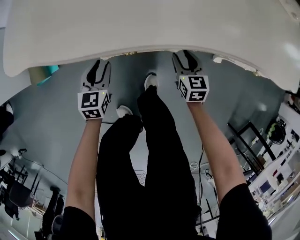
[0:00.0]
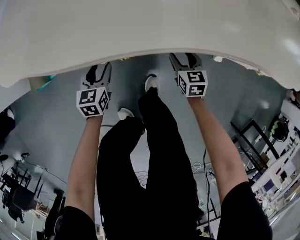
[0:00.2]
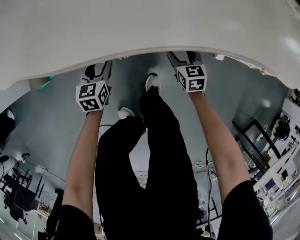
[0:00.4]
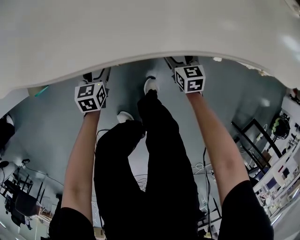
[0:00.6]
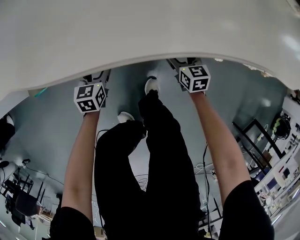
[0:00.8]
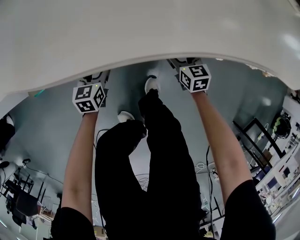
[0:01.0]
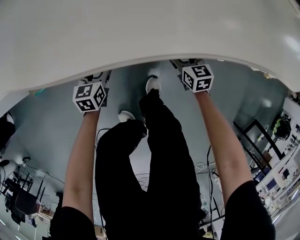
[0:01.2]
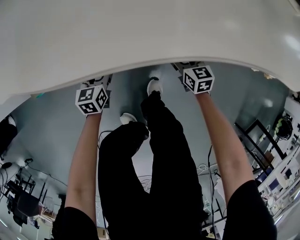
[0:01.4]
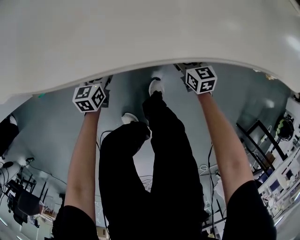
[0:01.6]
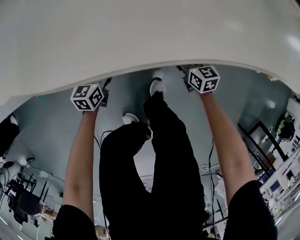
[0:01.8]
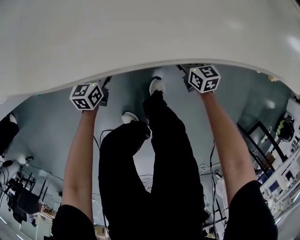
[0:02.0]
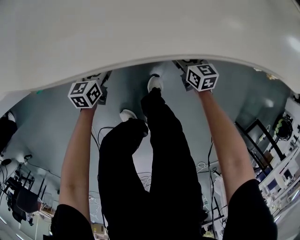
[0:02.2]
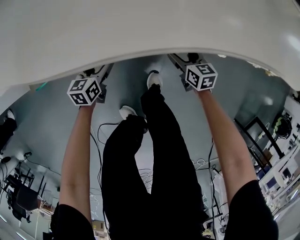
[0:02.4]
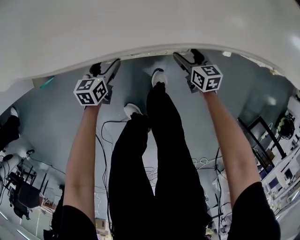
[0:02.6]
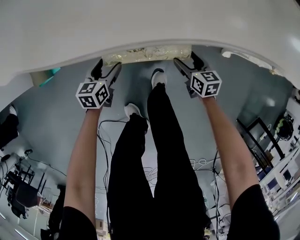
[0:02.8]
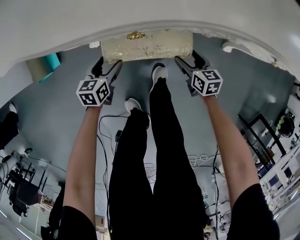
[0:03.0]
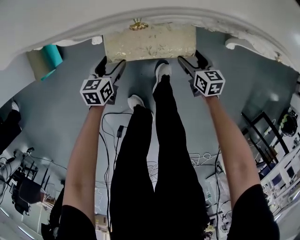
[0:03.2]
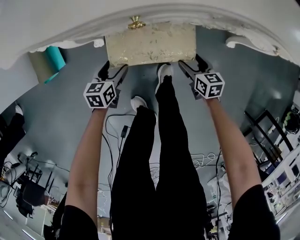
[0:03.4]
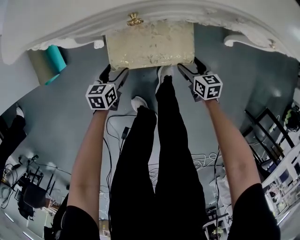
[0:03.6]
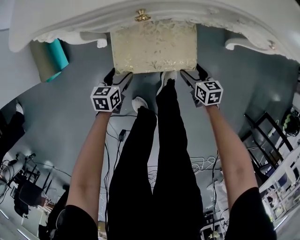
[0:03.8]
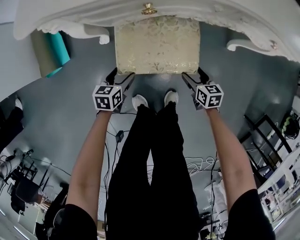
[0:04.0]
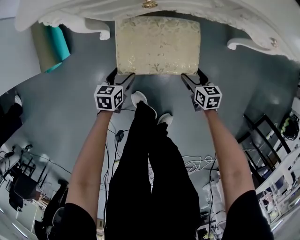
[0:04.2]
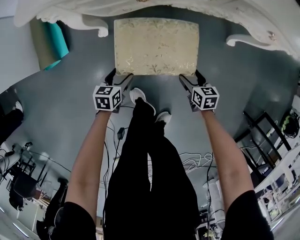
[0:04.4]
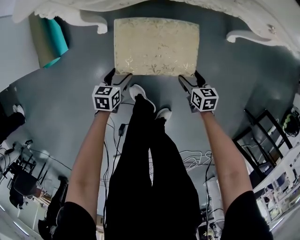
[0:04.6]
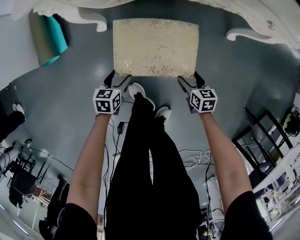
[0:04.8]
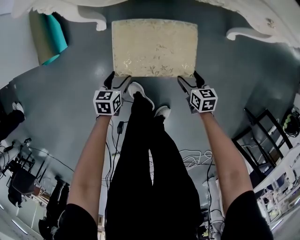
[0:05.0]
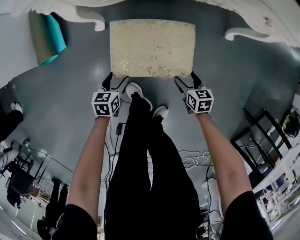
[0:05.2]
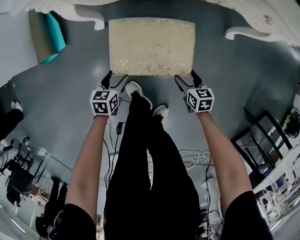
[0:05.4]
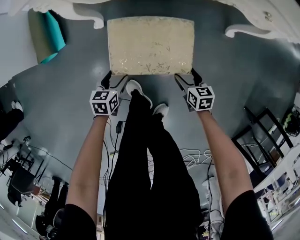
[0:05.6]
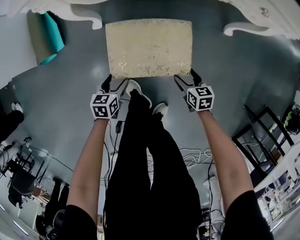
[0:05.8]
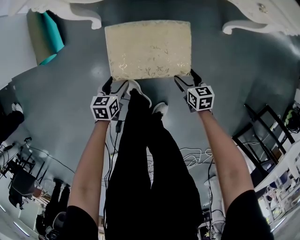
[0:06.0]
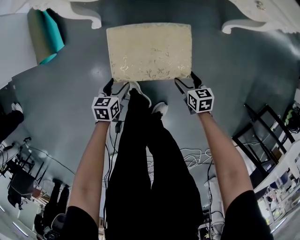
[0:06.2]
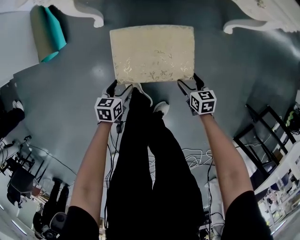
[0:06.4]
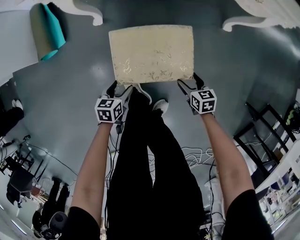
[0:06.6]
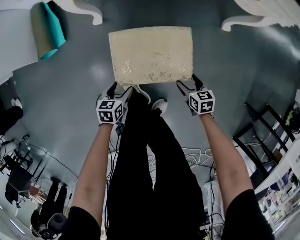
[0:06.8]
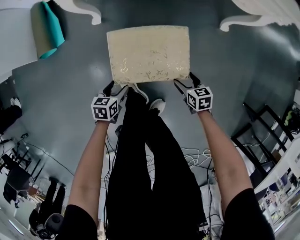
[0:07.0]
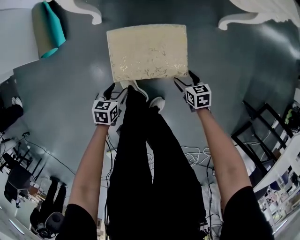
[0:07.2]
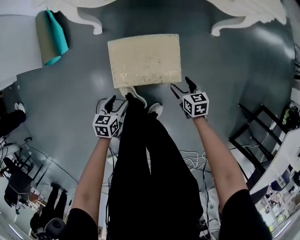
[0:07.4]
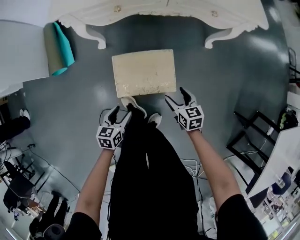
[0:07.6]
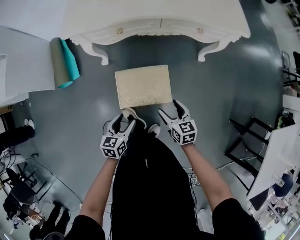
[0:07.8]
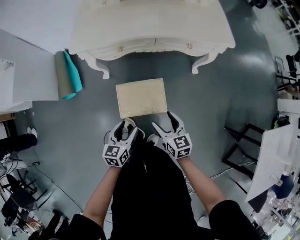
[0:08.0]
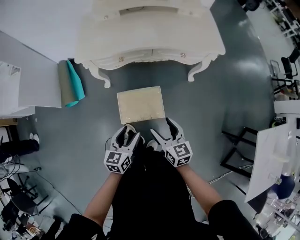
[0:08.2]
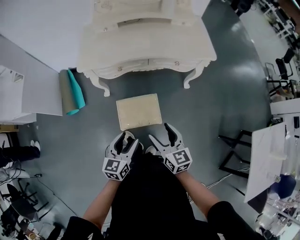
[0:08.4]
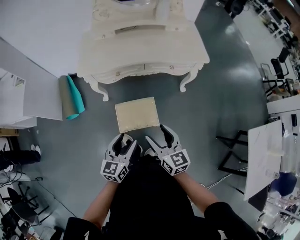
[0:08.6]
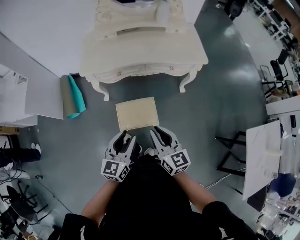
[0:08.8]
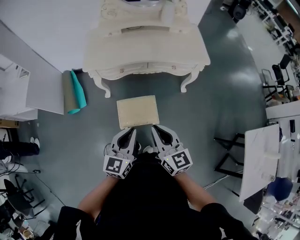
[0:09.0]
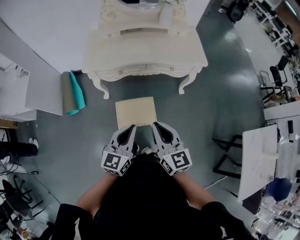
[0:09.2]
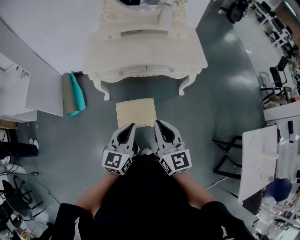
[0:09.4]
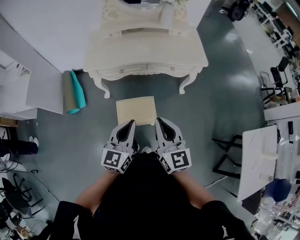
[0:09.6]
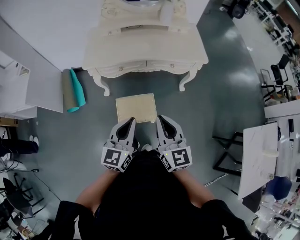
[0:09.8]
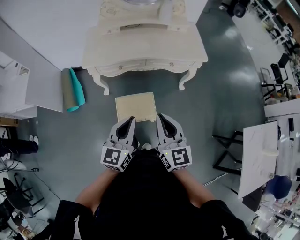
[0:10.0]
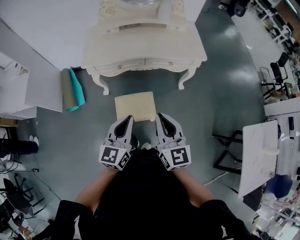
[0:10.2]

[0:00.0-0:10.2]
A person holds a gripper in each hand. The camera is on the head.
0:00.0 to 0:01.4: The two grippers go roughly 5 cm downward. The right gripper opens its fingers; the left gripper opens.
0:01.4 to 0:03.0: Both grippers travel together backward, roughly 10 cm.
0:03.0 to 0:04.4: The grippers both shift backward by about 15 cm.
0:04.4 to 0:05.8: The two grippers go about 10 cm backward.
0:05.8 to 0:07.2: Both grippers move backward, about 10 cm.
0:07.2 to 0:08.8: Both grippers travel together upward, some 60 cm. The right gripper tilts its fingers approximately 40 degrees upward, and closes; the left gripper points its fingers approximately 40 degrees further upward.
0:08.8 to 0:10.2: Both grippers move upward, some 5 cm. The left gripper closes.

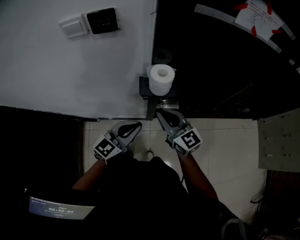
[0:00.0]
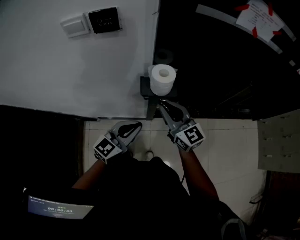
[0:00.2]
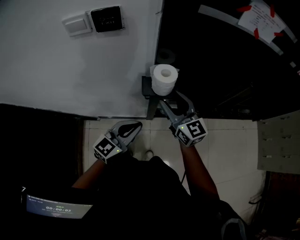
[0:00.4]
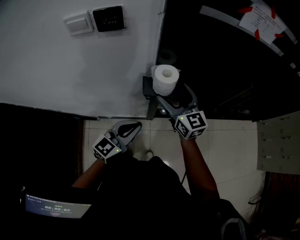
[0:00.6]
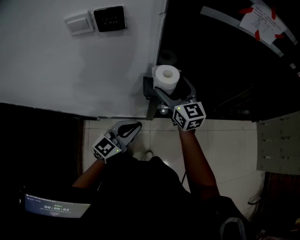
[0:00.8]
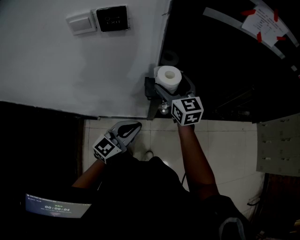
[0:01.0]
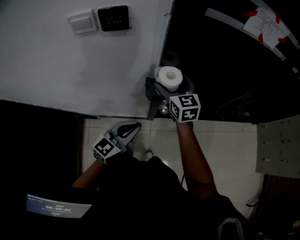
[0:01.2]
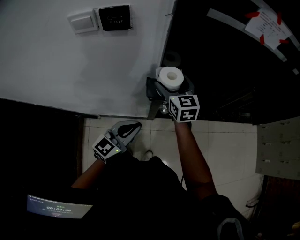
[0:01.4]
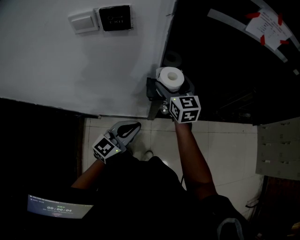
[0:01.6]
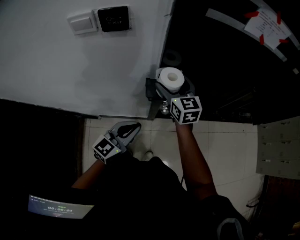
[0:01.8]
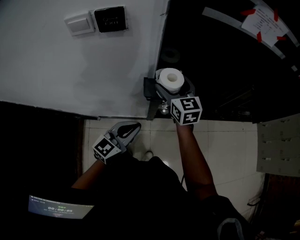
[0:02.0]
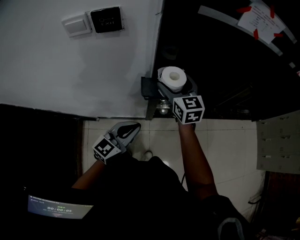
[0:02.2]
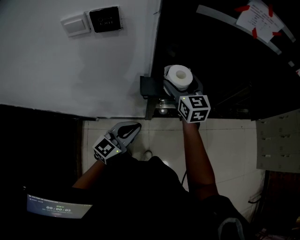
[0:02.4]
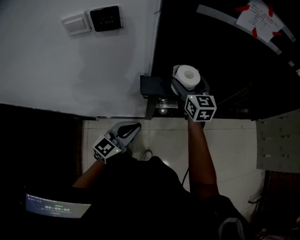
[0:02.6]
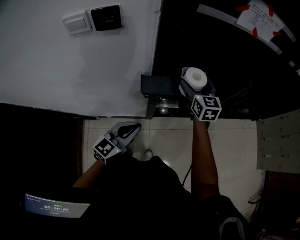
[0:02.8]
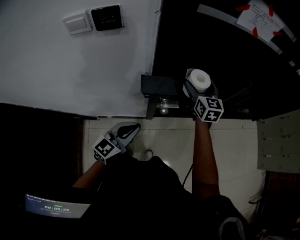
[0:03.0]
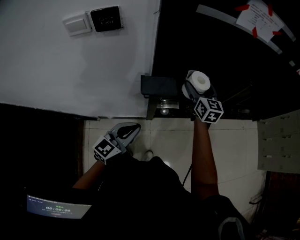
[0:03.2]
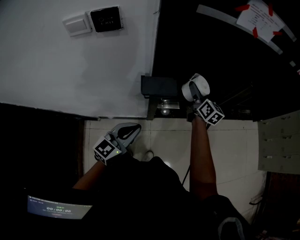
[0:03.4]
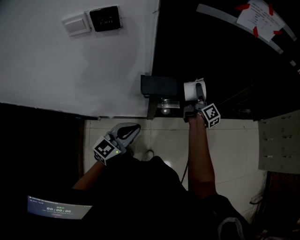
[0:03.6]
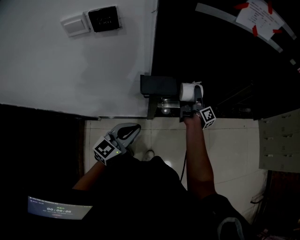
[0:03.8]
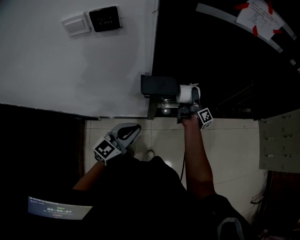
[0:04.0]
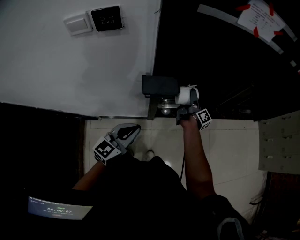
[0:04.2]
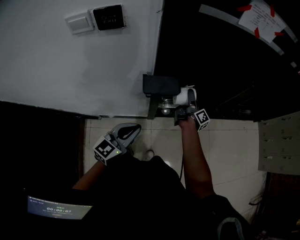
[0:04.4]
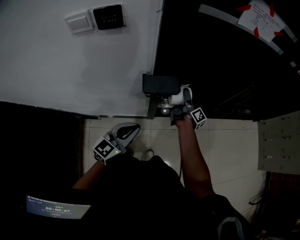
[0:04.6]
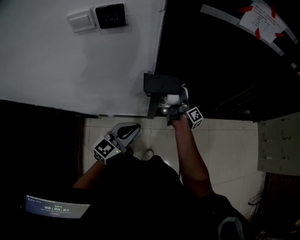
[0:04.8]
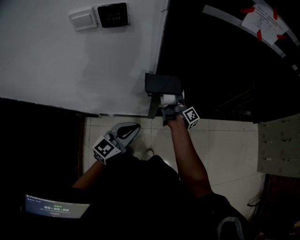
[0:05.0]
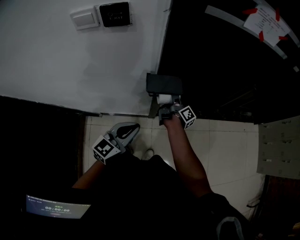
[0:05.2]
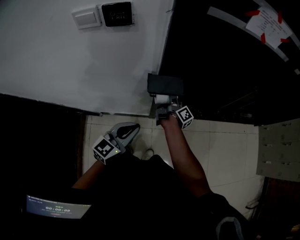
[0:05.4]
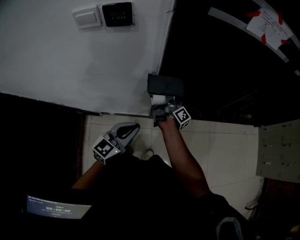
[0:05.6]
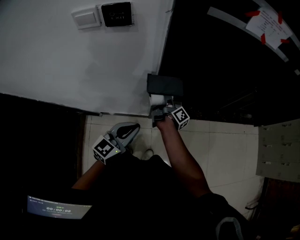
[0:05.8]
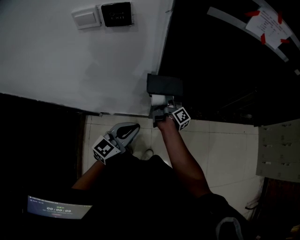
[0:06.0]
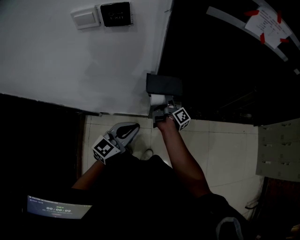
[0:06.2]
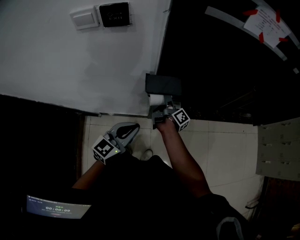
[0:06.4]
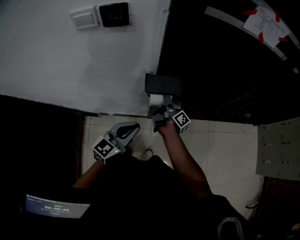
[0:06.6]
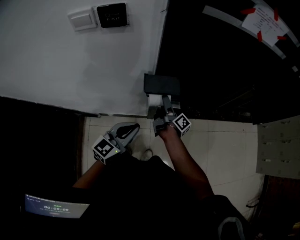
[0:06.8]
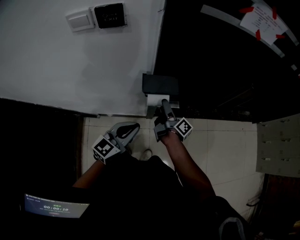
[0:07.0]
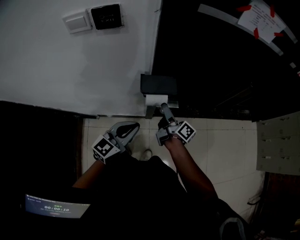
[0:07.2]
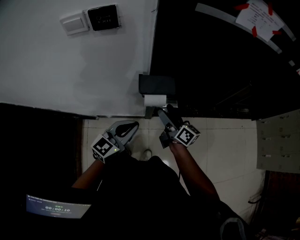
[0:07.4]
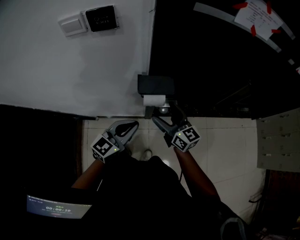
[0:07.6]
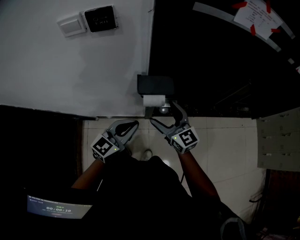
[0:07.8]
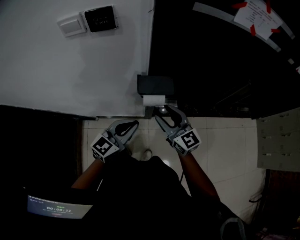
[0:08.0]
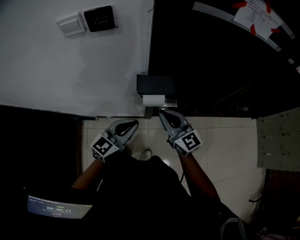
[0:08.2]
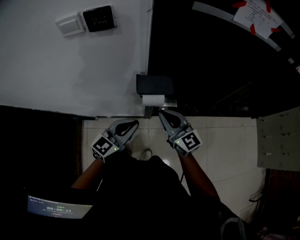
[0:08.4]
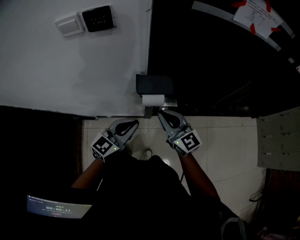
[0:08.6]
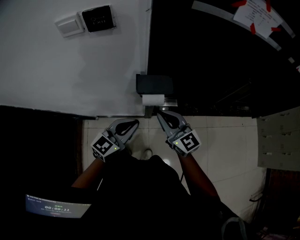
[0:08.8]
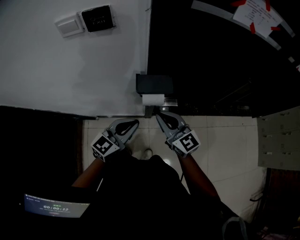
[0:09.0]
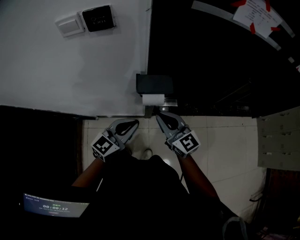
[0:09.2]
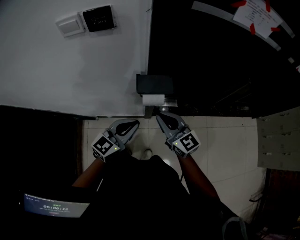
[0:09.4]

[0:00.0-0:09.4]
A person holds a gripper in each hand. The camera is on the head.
0:00.0 to 0:01.6: The right gripper shifts some 15 cm forward, rotates some 20 degrees, and opens.
0:01.6 to 0:03.2: The right gripper moves to the right, roughly 15 cm.
0:03.2 to 0:04.8: The right gripper moves downward, some 15 cm, and rolls clockwise, seen from behind, by about 80 degrees.
0:04.8 to 0:06.2: The right gripper moves to the left, roughly 10 cm.
0:06.2 to 0:07.8: The right gripper goes some 15 cm upward and backward, and rolls counterclockwise, seen from behind, by about 80 degrees.
0:07.8 to 0:09.4: The right gripper closes.

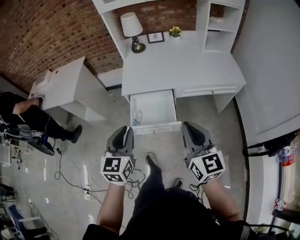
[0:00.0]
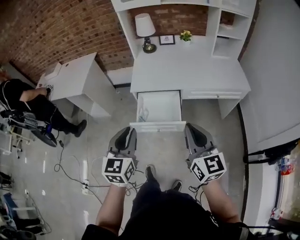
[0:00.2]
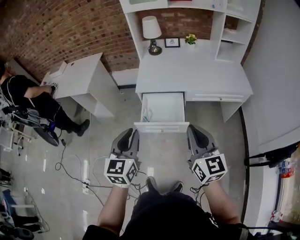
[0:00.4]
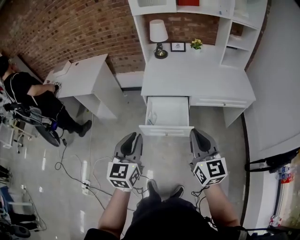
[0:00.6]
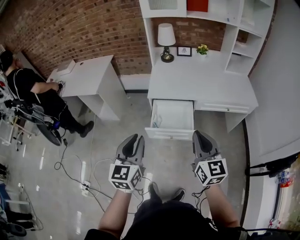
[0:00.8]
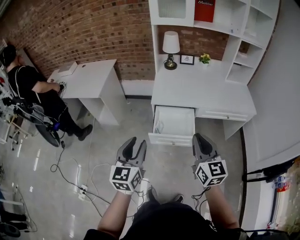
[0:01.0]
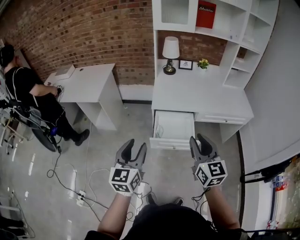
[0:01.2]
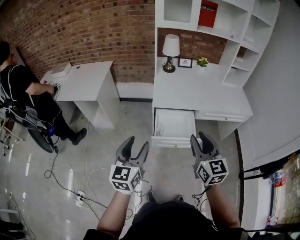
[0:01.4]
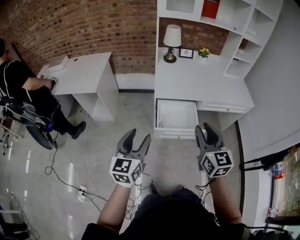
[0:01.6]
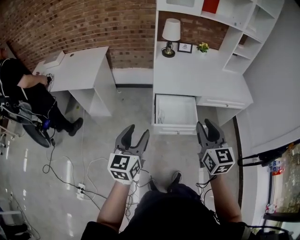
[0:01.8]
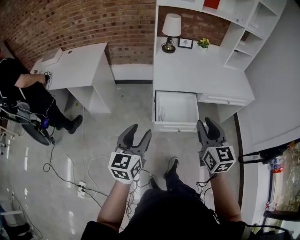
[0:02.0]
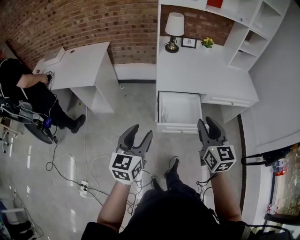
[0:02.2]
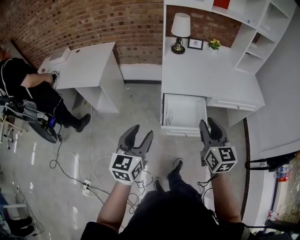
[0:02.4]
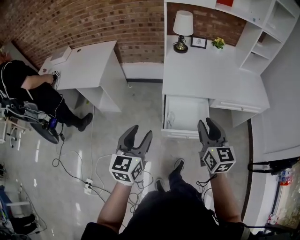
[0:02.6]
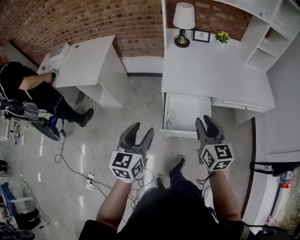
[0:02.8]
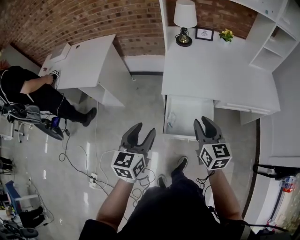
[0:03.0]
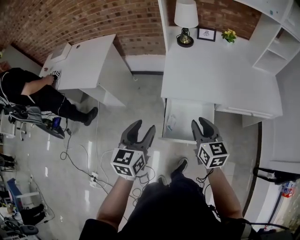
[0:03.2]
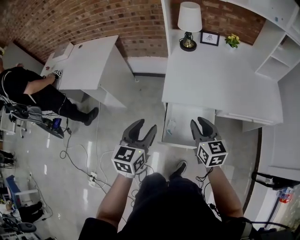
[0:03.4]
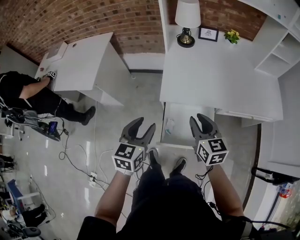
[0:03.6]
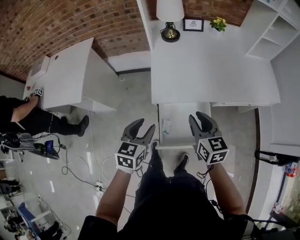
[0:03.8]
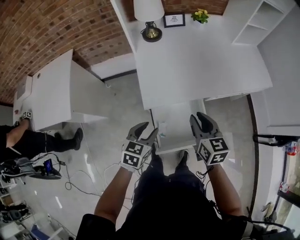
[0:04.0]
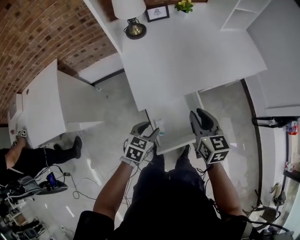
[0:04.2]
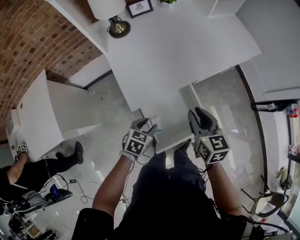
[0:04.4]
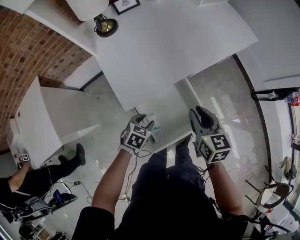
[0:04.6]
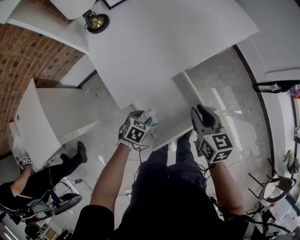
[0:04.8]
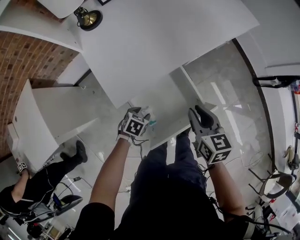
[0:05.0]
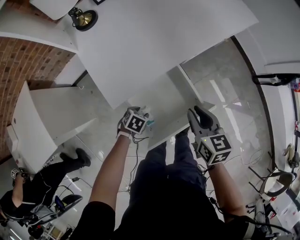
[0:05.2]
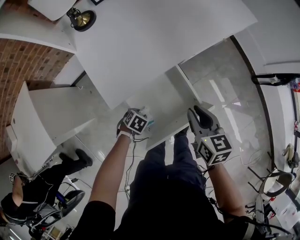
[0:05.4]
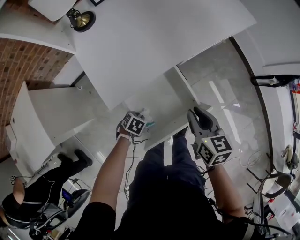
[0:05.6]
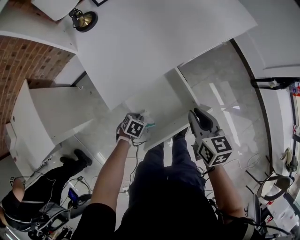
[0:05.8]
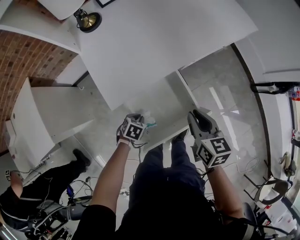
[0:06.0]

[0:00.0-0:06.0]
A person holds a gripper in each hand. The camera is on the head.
0:00.0 to 0:01.6: Both grippers move to the left, roughly 20 cm. The left gripper opens up; the right gripper opens up.
0:01.6 to 0:03.0: The grippers both shift forward and downward by roughly 20 cm.
0:03.0 to 0:04.4: The right gripper changes place by roughly 15 cm, and swivels roughly 30 degrees; the left gripper shifts about 25 cm downward, and tilts its fingers about 30 degrees downward.
0:04.4 to 0:06.0: The right gripper moves roughly 10 cm. The left gripper moves downward, roughly 15 cm, changes its angle by roughly 20 degrees, and closes.
